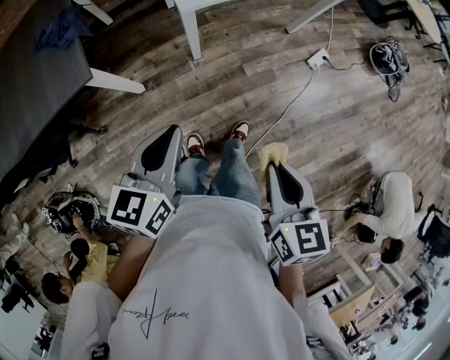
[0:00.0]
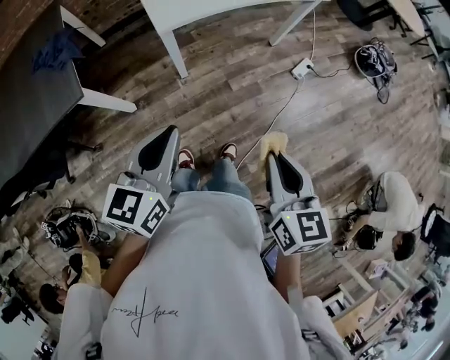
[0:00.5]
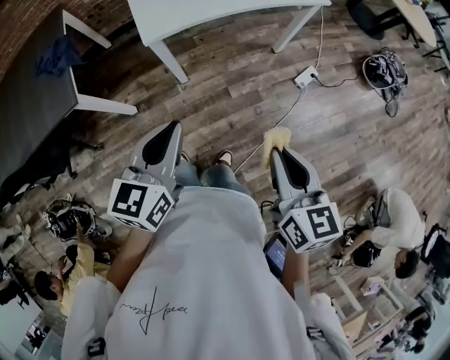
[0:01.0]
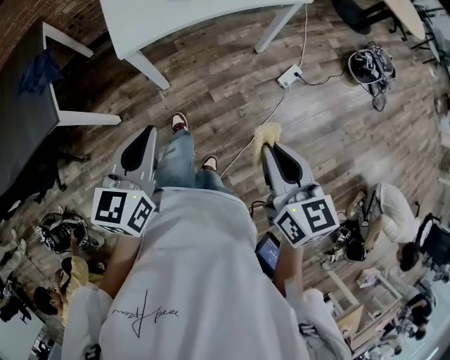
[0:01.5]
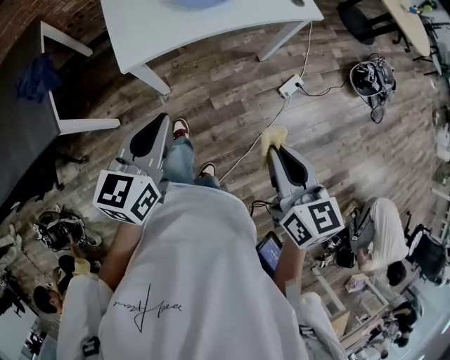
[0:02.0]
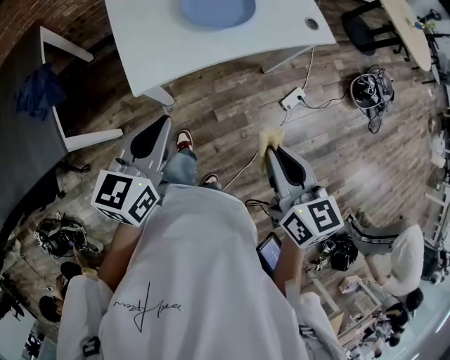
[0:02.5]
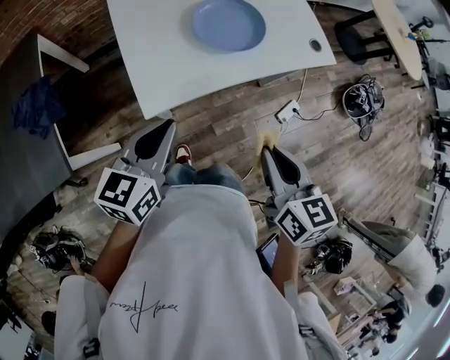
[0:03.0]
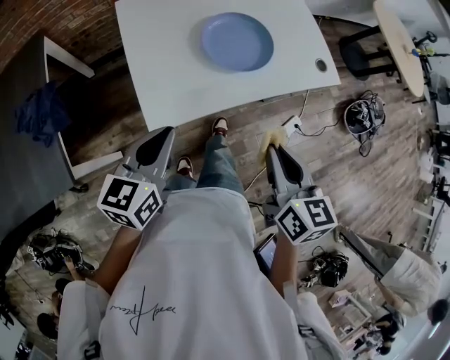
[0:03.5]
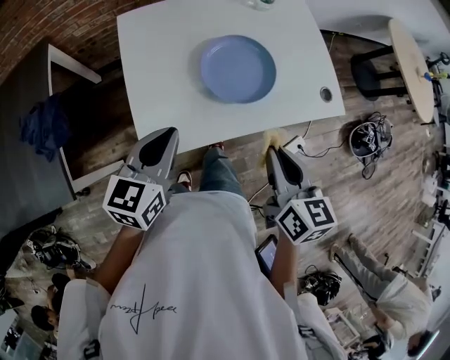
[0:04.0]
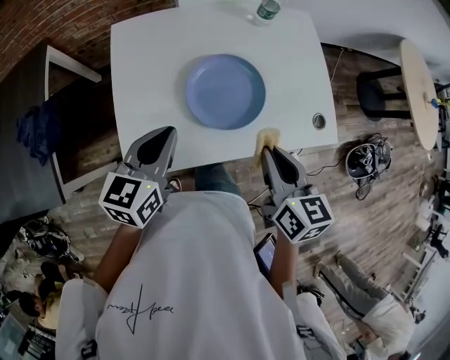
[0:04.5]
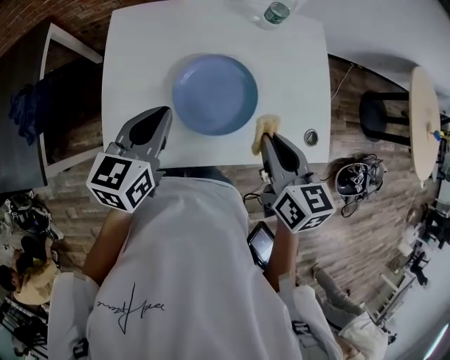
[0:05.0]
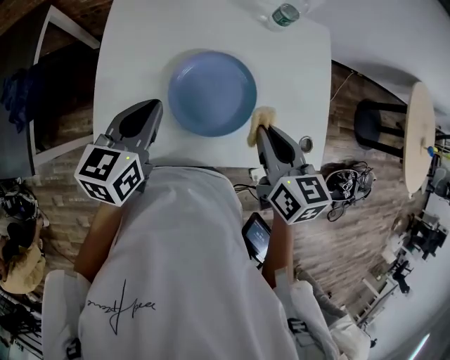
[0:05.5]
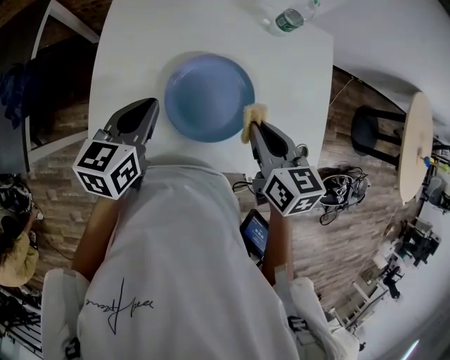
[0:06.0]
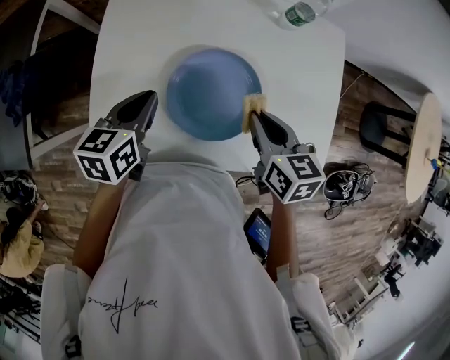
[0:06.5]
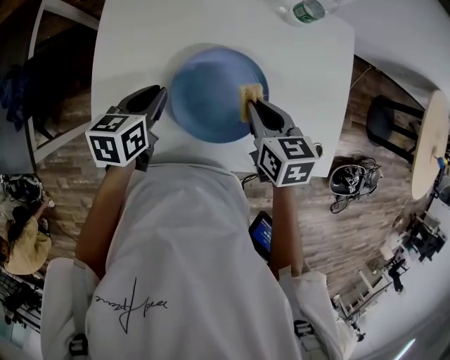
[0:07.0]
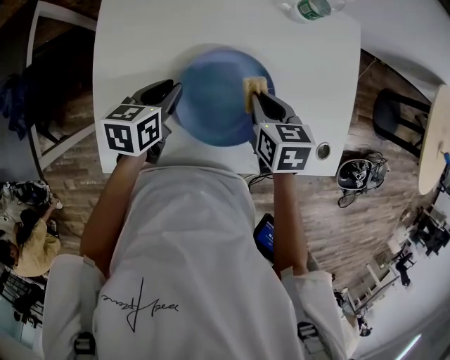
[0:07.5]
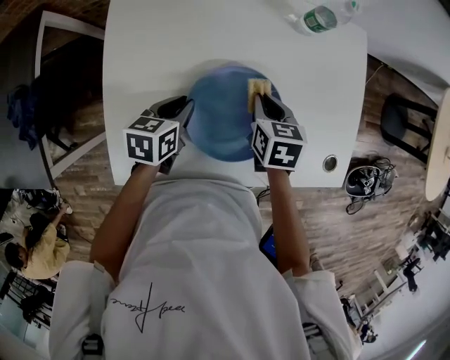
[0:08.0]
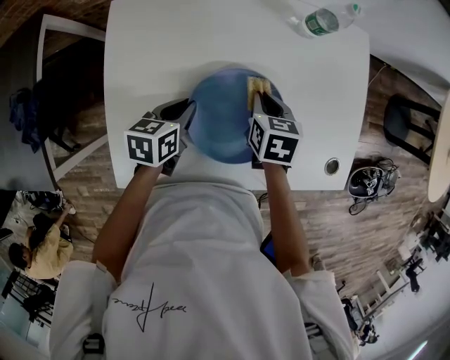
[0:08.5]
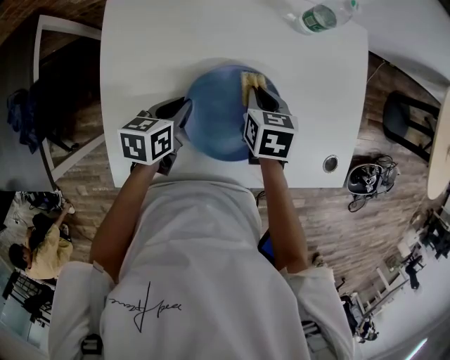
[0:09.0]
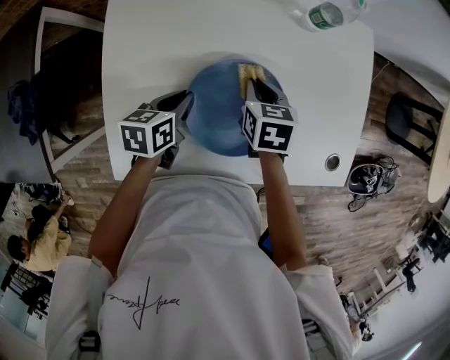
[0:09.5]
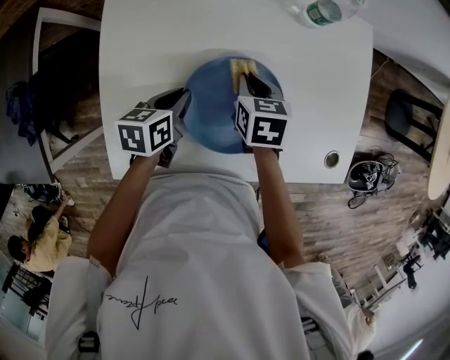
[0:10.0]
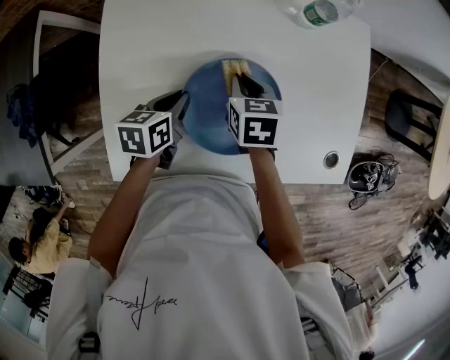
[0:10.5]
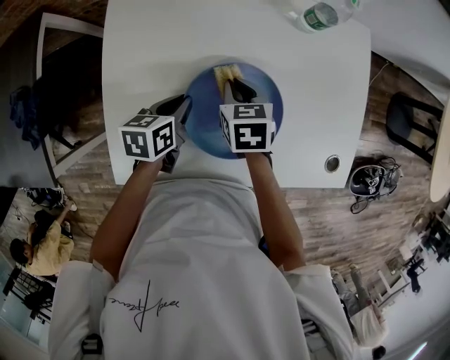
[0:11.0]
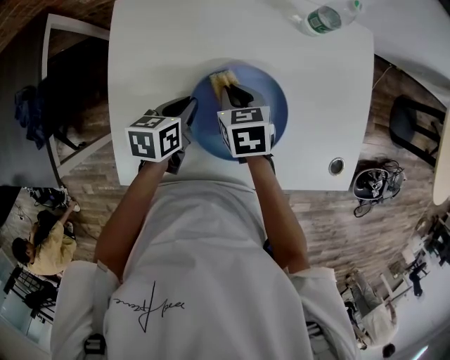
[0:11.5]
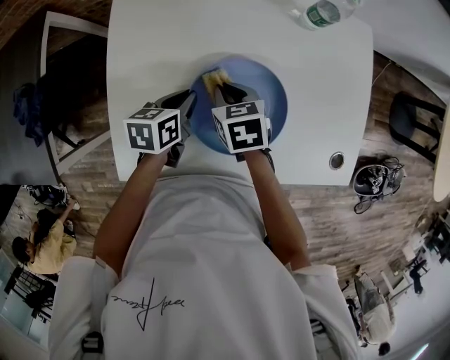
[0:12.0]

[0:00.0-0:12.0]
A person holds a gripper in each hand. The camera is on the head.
0:00.0 to 0:02.0: The two grippers go roughly 25 cm forward and to the right.
0:02.0 to 0:04.0: The two grippers go approximately 30 cm forward.
0:04.0 to 0:06.0: The right gripper goes some 20 cm forward, and turns by some 30 degrees. The left gripper travels forward and to the right by about 15 cm, and turns by roughly 20 degrees.
0:06.0 to 0:08.0: The left gripper shifts approximately 15 cm downward, and turns by about 20 degrees; the right gripper goes roughly 15 cm downward and forward.
0:08.0 to 0:10.0: The grippers stay close to where they were, moving slightly.
0:10.0 to 0:12.0: The right gripper travels to the left by some 5 cm.

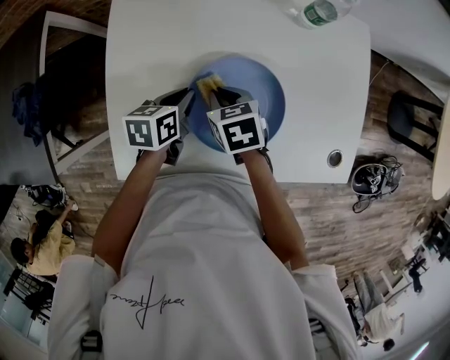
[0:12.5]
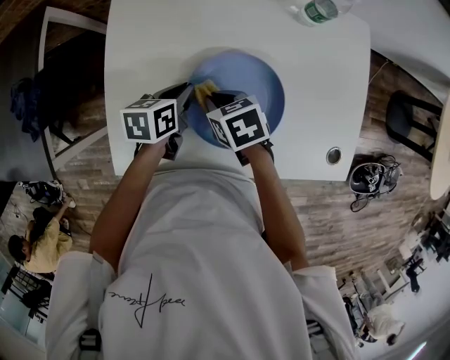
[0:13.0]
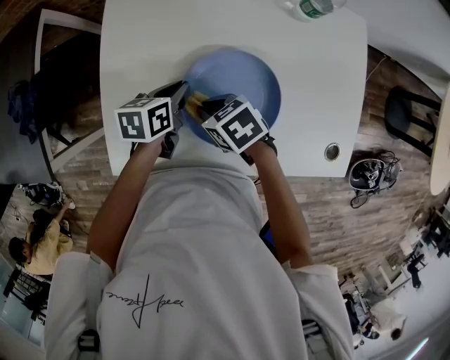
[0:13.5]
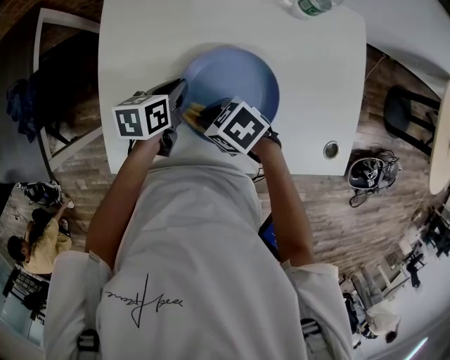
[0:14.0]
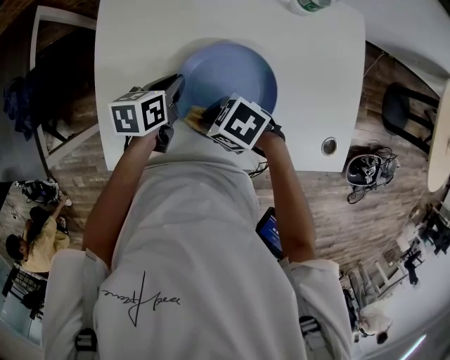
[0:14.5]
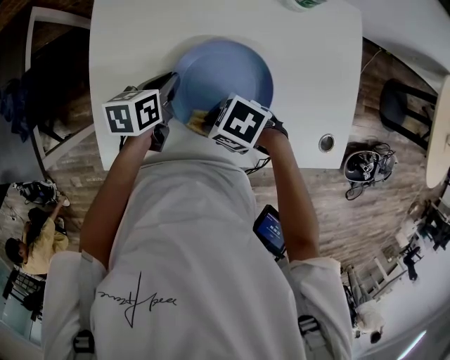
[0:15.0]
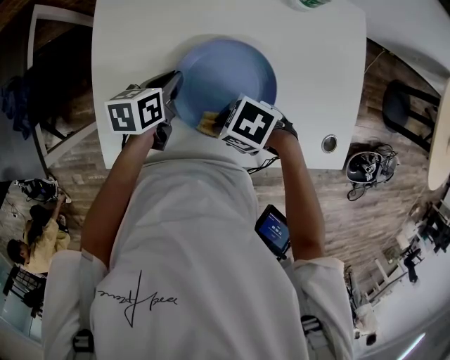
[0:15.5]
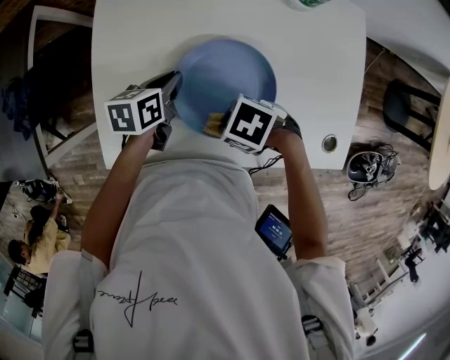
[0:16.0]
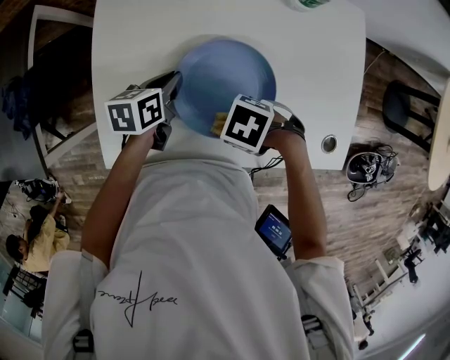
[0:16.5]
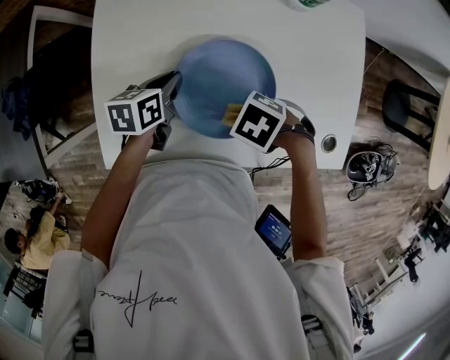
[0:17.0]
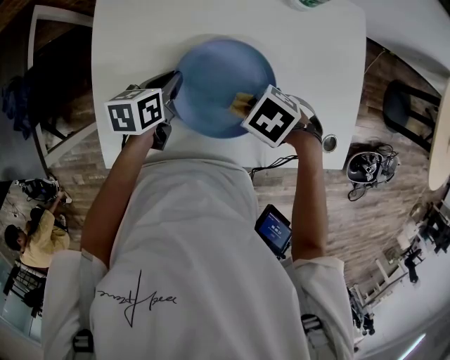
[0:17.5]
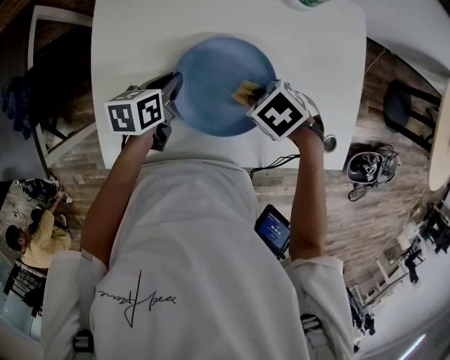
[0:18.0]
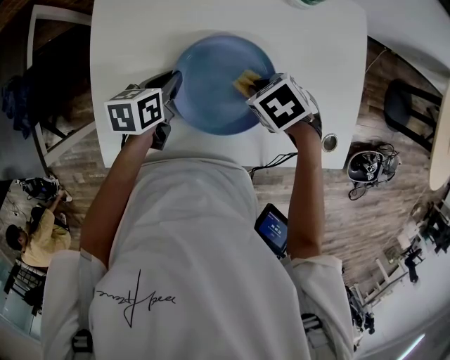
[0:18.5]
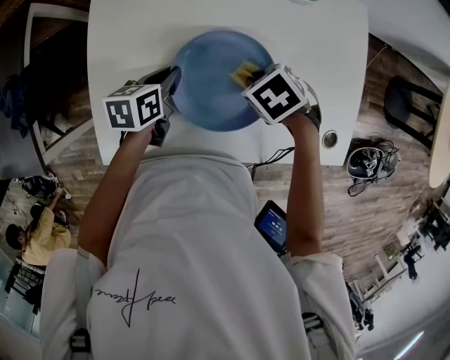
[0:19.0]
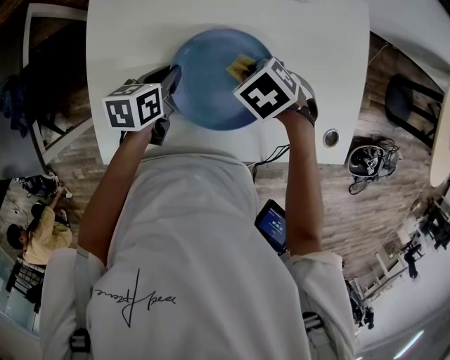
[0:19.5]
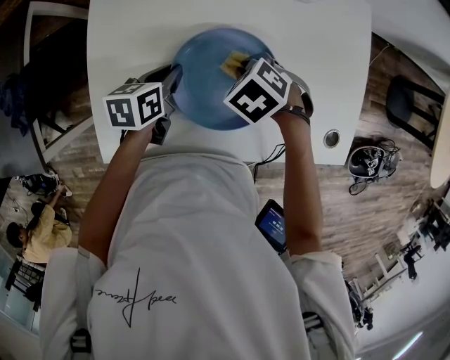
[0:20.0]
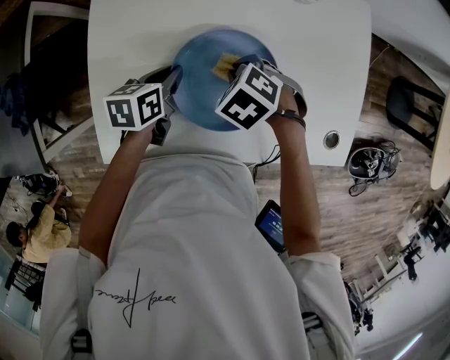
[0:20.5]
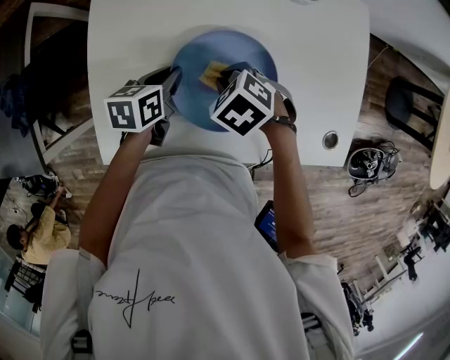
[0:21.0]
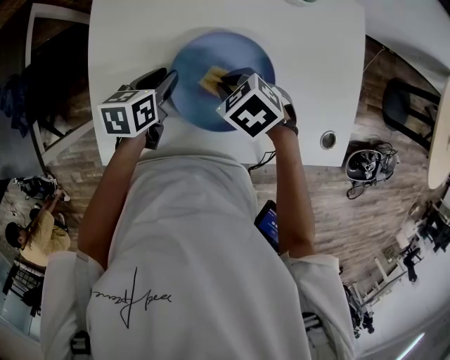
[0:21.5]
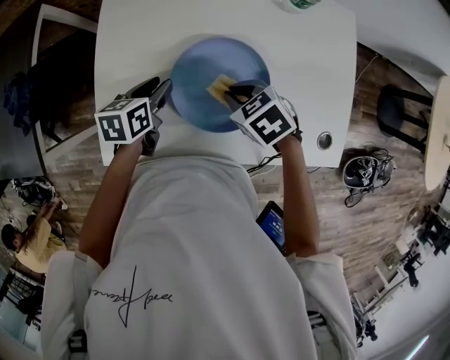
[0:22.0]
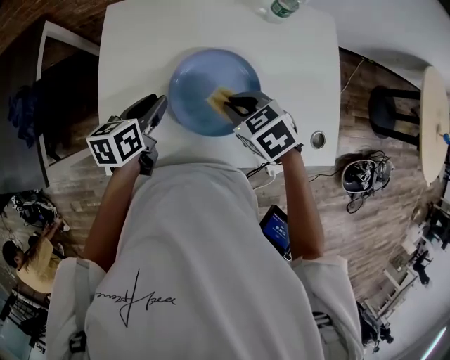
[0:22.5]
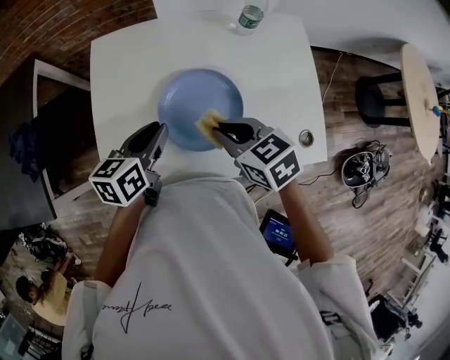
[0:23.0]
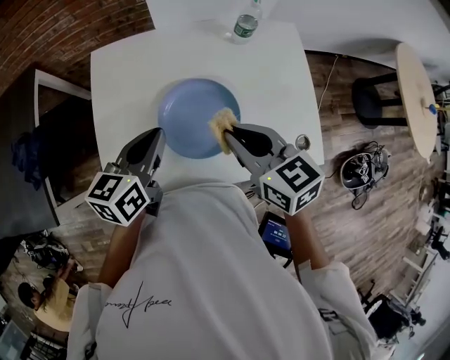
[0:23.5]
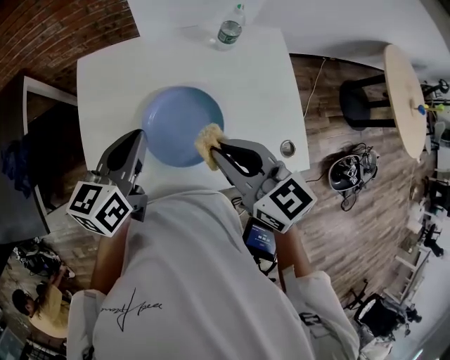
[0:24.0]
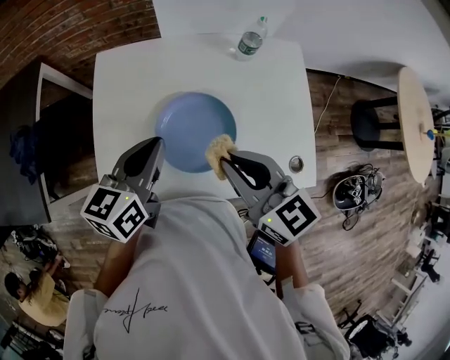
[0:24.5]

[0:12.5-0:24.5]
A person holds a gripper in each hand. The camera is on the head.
0:12.5 to 0:14.5: The right gripper moves about 10 cm, and rotates approximately 40 degrees.
0:14.5 to 0:16.5: The right gripper ends up about 5 cm from where it was, and rotates roughly 20 degrees.
0:16.5 to 0:18.5: The right gripper changes place by some 10 cm, and rotates some 30 degrees.
0:18.5 to 0:20.5: The right gripper changes place by about 5 cm, and rotates some 20 degrees.
0:20.5 to 0:22.5: The two grippers go some 5 cm upward. The right gripper rotates approximately 30 degrees, while the left gripper opens up.
0:22.5 to 0:24.5: The left gripper goes approximately 15 cm upward and to the right, changes its angle by some 20 degrees, and closes its fingers; the right gripper travels upward by about 20 cm, and points its fingers about 40 degrees further upward.

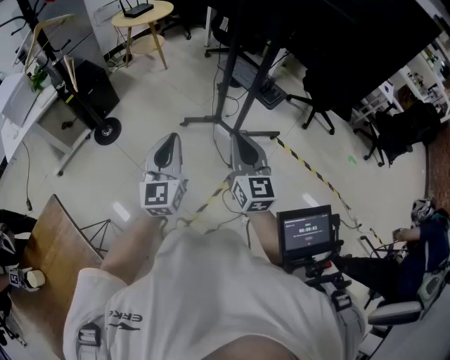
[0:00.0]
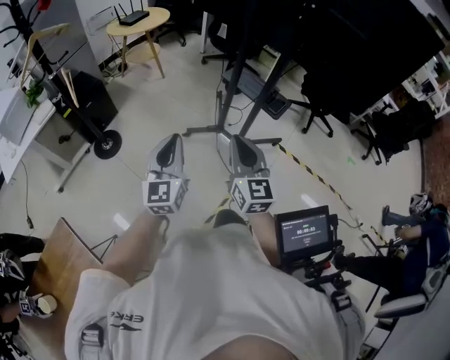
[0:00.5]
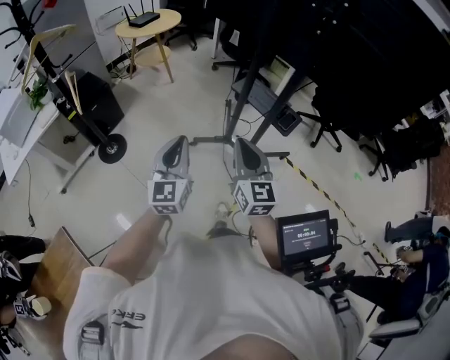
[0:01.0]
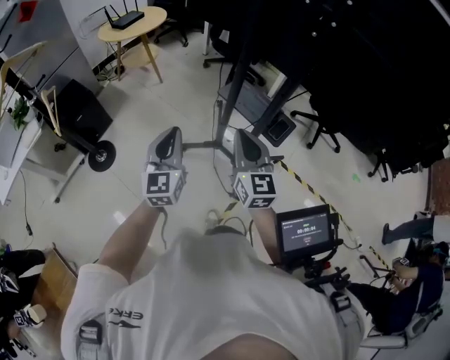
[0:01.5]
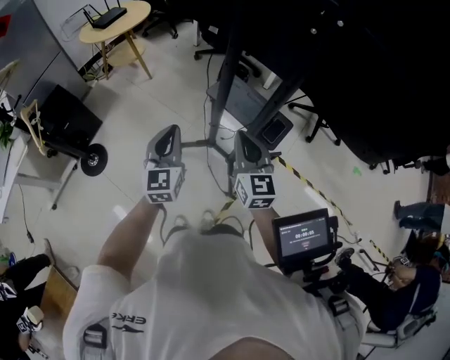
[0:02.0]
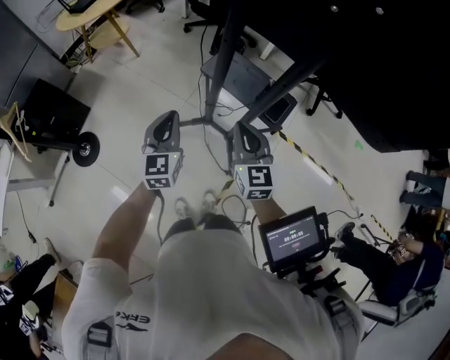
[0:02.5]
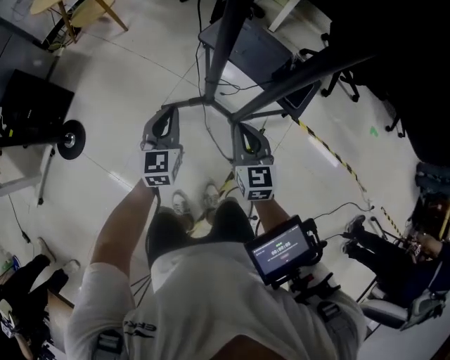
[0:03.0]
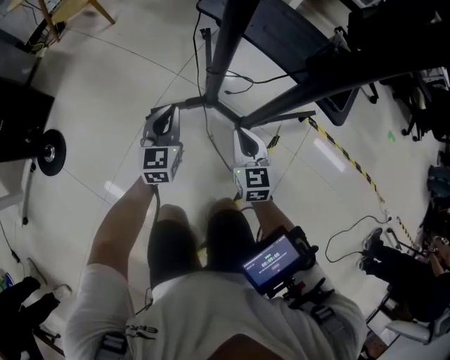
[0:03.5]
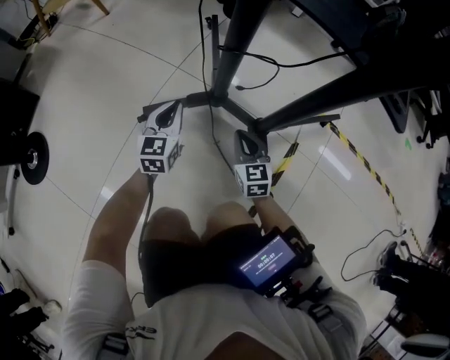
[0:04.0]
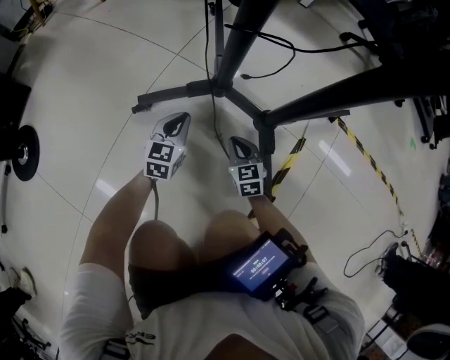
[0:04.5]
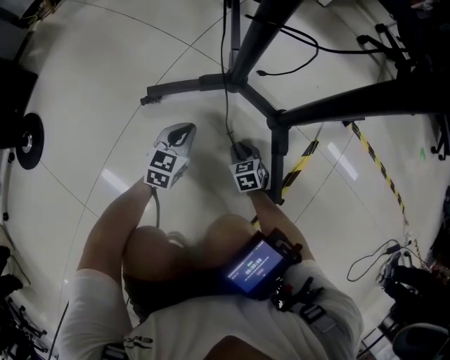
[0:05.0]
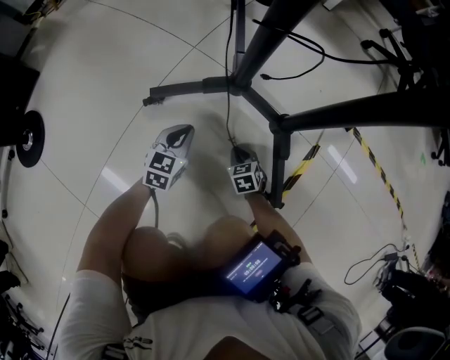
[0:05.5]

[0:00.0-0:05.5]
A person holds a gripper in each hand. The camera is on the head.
0:00.0 to 0:02.0: The two grippers go approximately 35 cm forward.
0:02.0 to 0:03.5: Both grippers travel together downward, roughly 50 cm.
0:03.5 to 0:05.5: Both grippers travel together downward, approximately 40 cm. The right gripper tilts its fingers roughly 30 degrees downward. The left gripper turns by roughly 20 degrees.
